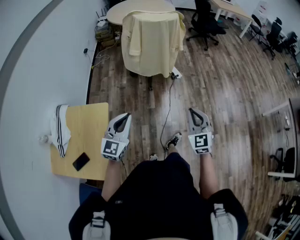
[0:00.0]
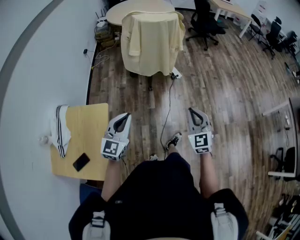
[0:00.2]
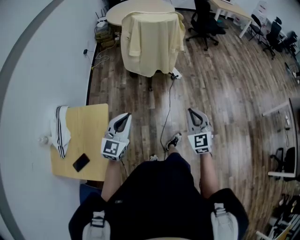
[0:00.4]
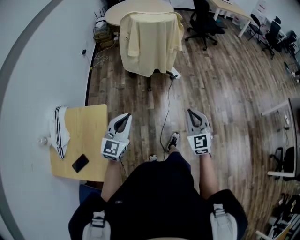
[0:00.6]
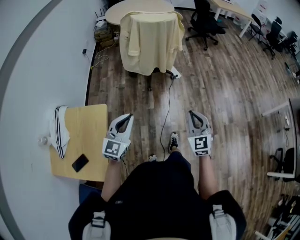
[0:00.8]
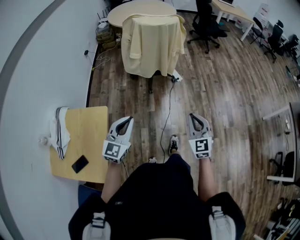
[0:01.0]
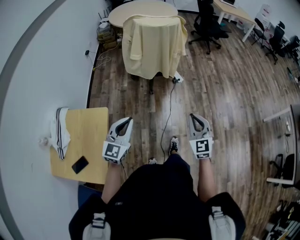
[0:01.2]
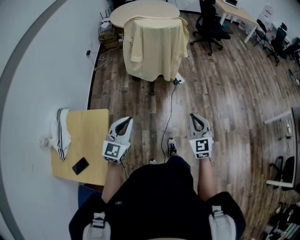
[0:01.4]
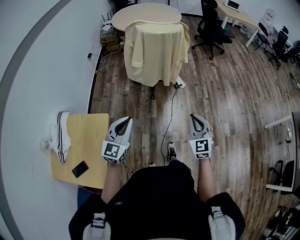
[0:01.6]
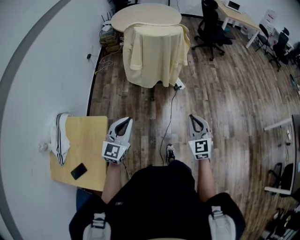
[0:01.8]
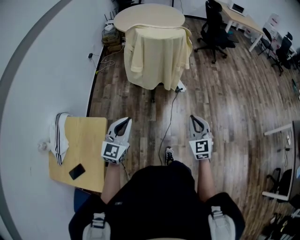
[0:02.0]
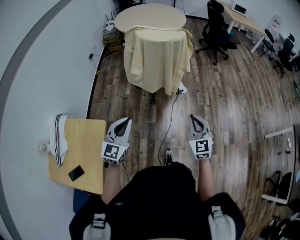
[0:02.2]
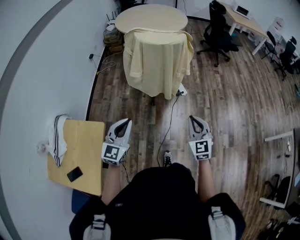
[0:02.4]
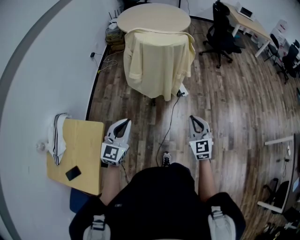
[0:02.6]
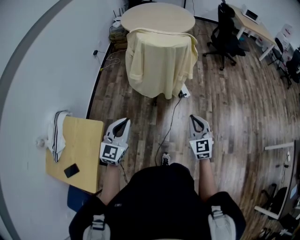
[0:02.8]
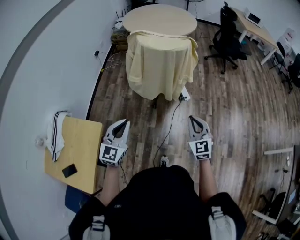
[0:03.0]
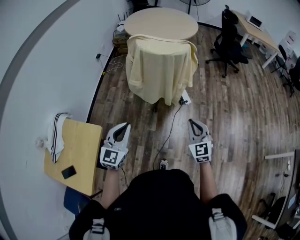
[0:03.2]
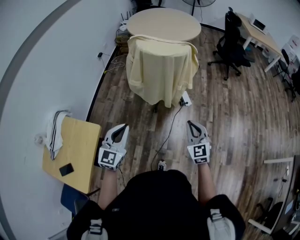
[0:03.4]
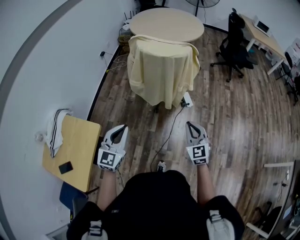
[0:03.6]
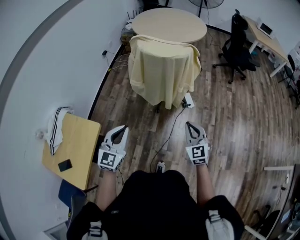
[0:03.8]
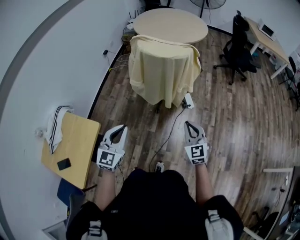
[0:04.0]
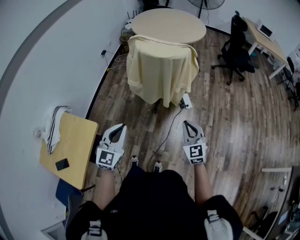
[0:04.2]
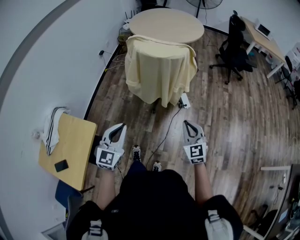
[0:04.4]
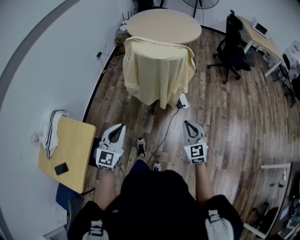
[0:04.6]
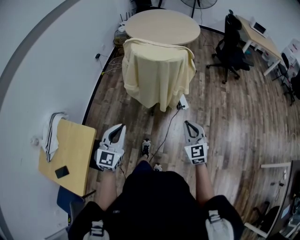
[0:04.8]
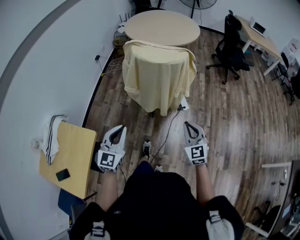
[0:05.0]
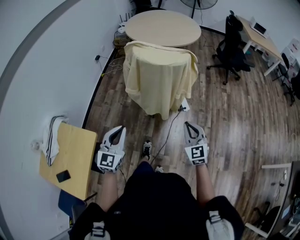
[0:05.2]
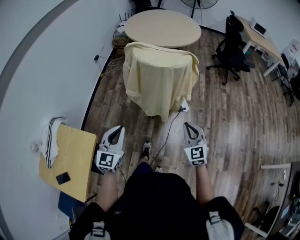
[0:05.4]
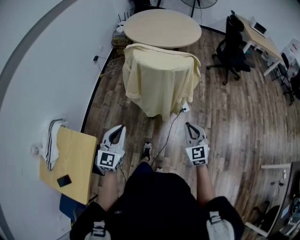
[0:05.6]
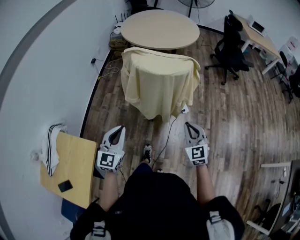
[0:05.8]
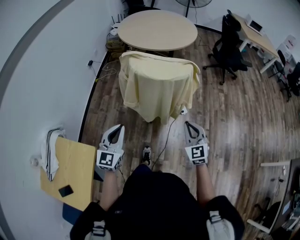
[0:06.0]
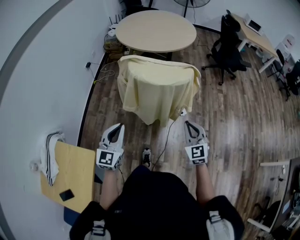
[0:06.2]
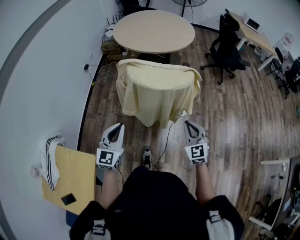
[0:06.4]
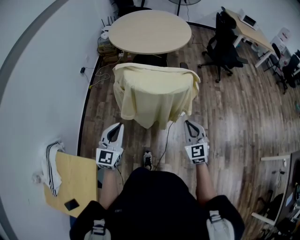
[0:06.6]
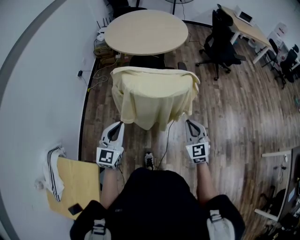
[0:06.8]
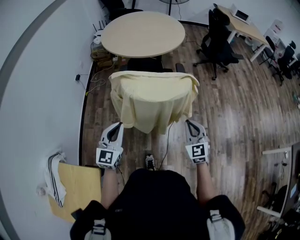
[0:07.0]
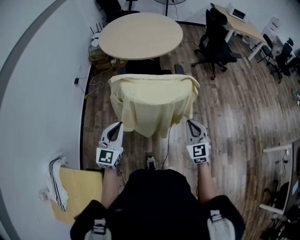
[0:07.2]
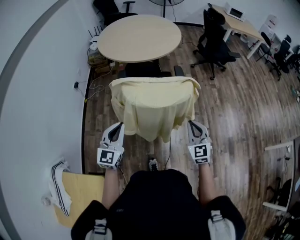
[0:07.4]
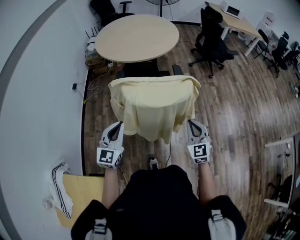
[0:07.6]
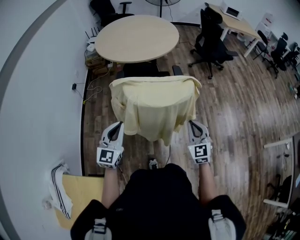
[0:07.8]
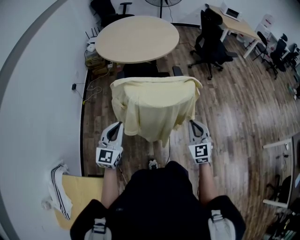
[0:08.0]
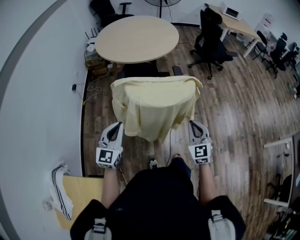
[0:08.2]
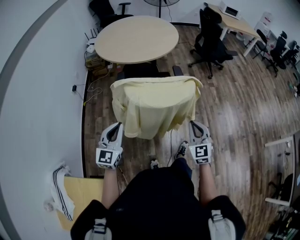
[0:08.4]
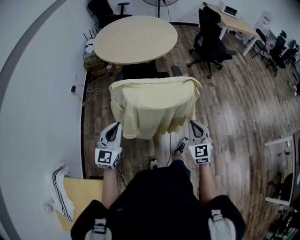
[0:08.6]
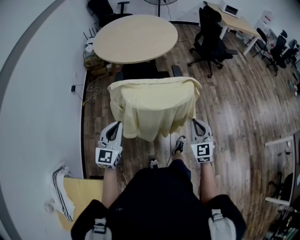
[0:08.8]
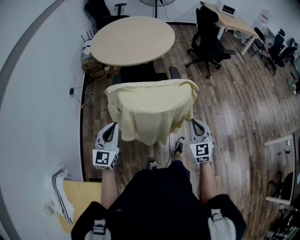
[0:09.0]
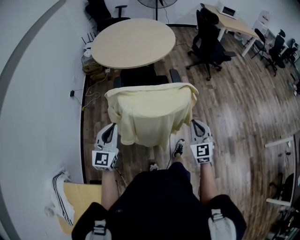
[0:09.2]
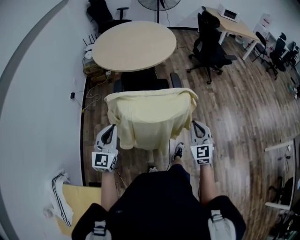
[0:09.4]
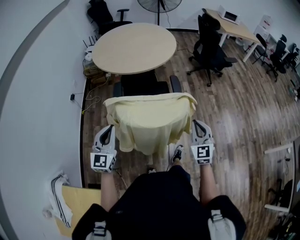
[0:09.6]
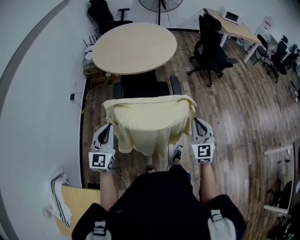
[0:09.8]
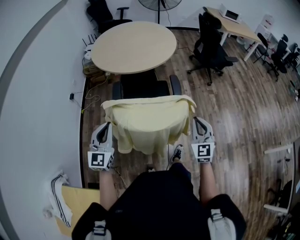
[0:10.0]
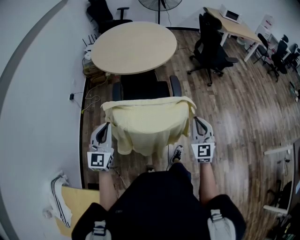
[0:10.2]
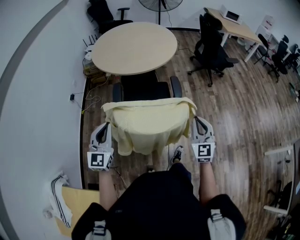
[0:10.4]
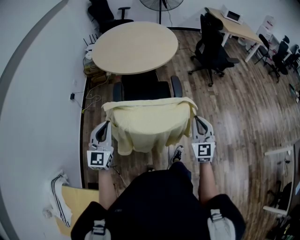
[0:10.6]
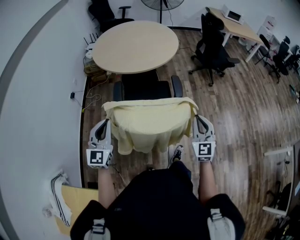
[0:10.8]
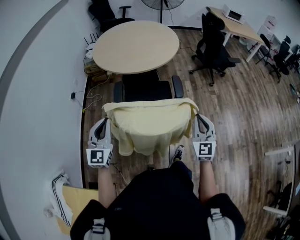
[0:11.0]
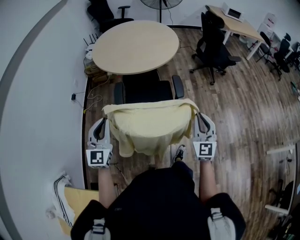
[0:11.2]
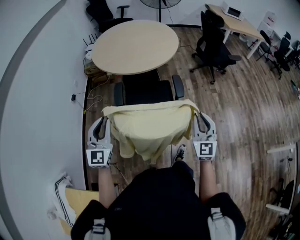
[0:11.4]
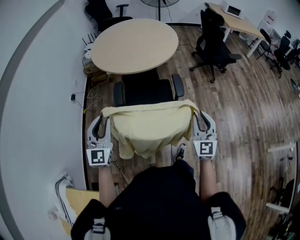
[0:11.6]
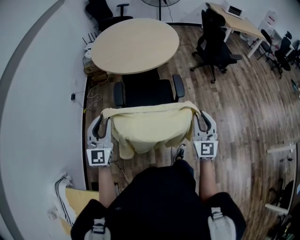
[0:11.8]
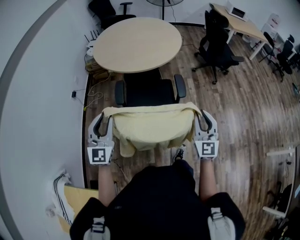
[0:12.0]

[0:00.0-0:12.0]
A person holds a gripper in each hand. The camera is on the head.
0:00.0 to 0:01.6: The grippers both shift forward by some 10 cm.
0:01.6 to 0:03.0: Both grippers travel together forward, approximately 15 cm.
0:03.0 to 0:04.4: The right gripper changes place by some 5 cm; the left gripper goes some 5 cm to the right.
0:04.4 to 0:06.0: Both grippers move forward, approximately 15 cm.
0:06.0 to 0:07.6: The left gripper is displaced forward by about 20 cm. The right gripper goes roughly 10 cm forward.
0:07.6 to 0:09.0: There are only small adjustments of the grippers.
0:09.0 to 0:10.4: Both grippers move forward, some 10 cm.
0:10.4 to 0:12.0: The left gripper moves forward, some 5 cm, and opens. Meanwhile the right gripper ends up roughly 5 cm from where it was.

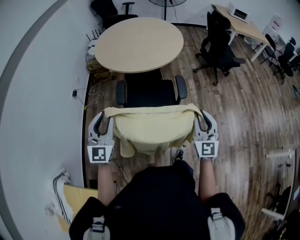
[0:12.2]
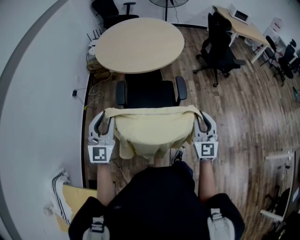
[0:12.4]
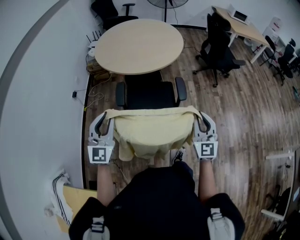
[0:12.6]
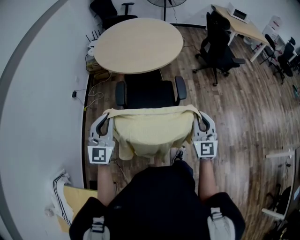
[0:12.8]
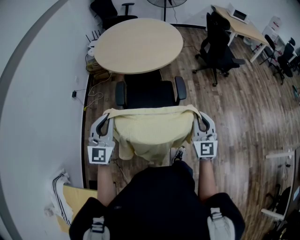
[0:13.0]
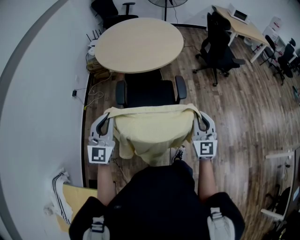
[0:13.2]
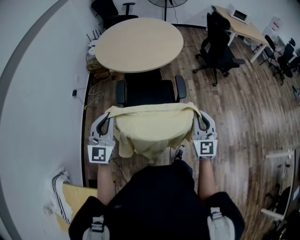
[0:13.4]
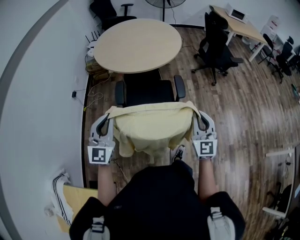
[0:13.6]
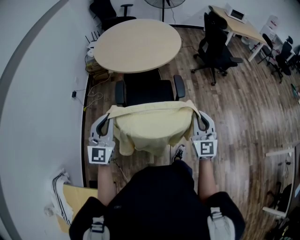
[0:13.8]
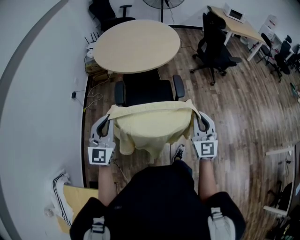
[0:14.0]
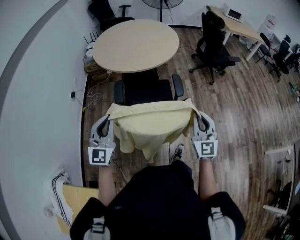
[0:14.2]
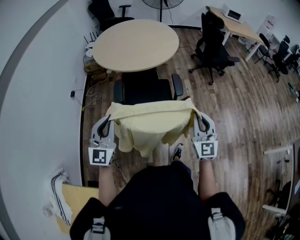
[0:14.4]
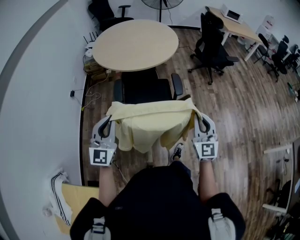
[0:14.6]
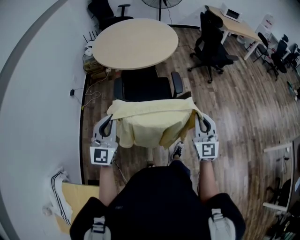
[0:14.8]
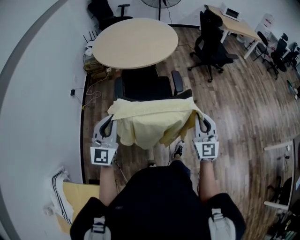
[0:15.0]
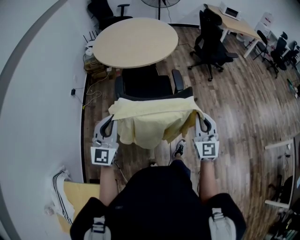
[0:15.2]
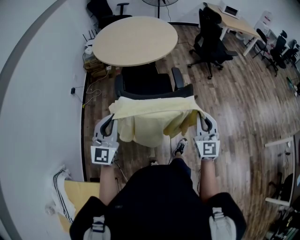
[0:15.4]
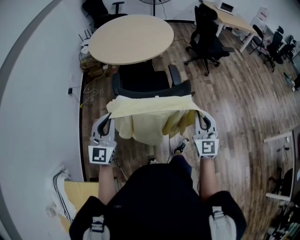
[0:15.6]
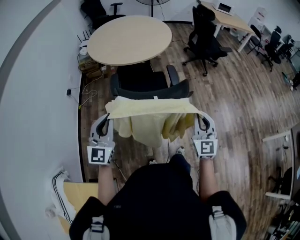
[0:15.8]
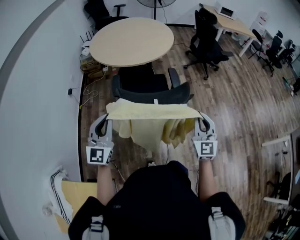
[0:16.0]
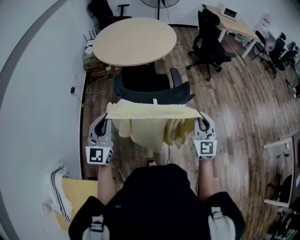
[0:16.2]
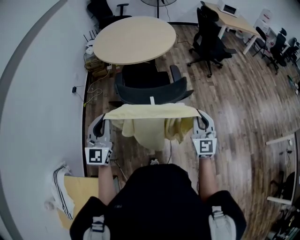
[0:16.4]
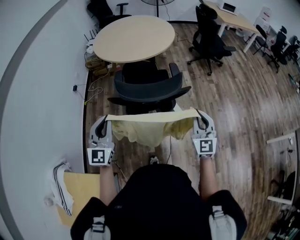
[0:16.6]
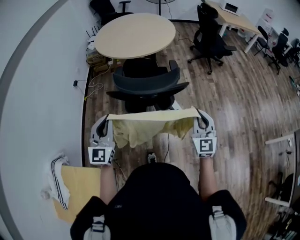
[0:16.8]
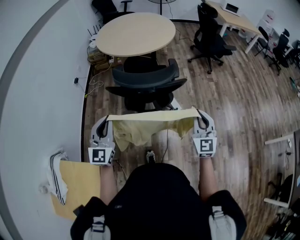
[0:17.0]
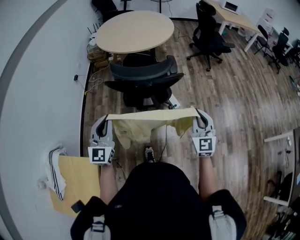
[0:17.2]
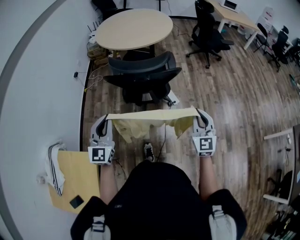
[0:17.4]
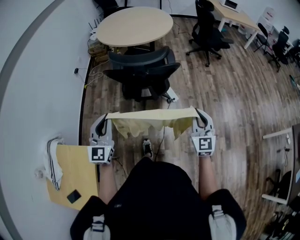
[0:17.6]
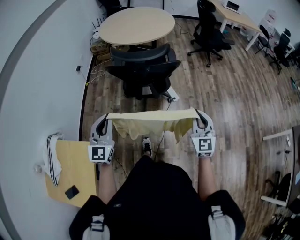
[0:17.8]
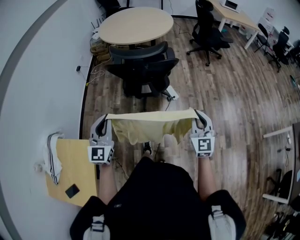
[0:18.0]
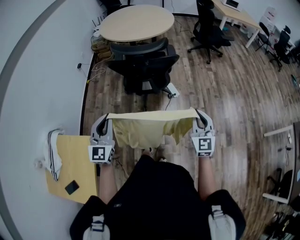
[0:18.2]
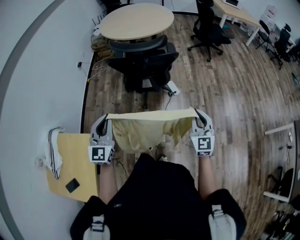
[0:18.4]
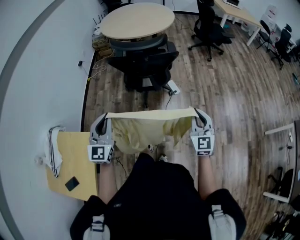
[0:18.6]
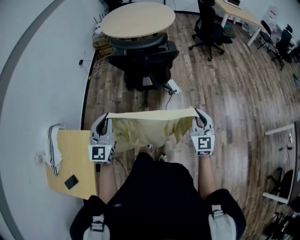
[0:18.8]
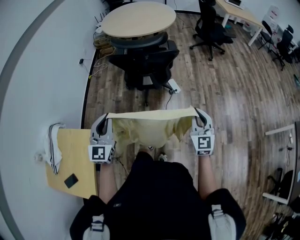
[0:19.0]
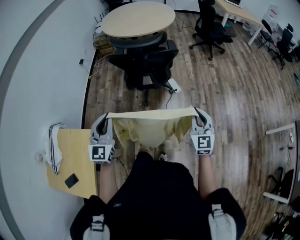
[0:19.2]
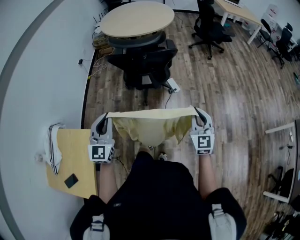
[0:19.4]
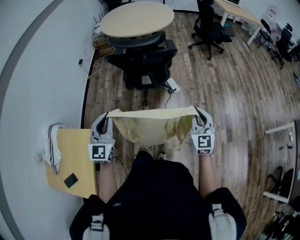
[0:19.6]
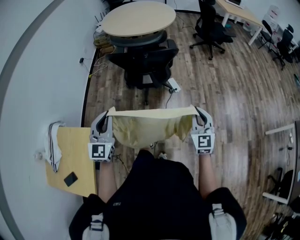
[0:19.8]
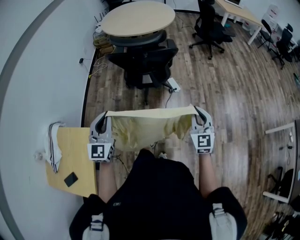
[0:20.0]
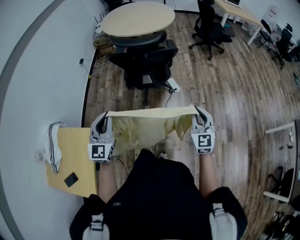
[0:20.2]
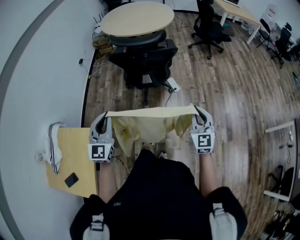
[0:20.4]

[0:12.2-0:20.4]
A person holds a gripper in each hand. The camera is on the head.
0:12.2 to 0:13.8: The left gripper closes its fingers.
0:13.8 to 0:15.4: Both grippers move backward, about 10 cm.
0:15.4 to 0:17.2: The grippers both shift backward and to the right by roughly 20 cm.
0:17.2 to 0:18.8: The grippers both shift backward by some 15 cm.
0:18.8 to 0:20.4: The grippers make only small movements.

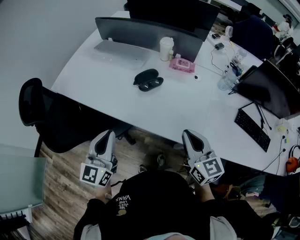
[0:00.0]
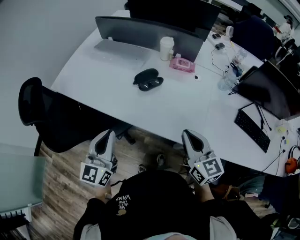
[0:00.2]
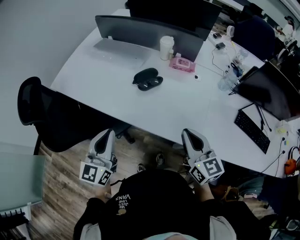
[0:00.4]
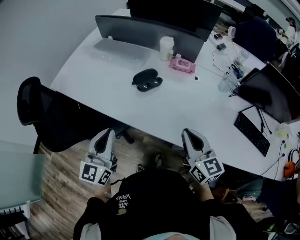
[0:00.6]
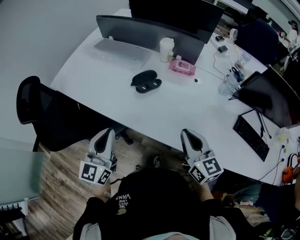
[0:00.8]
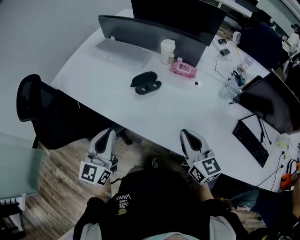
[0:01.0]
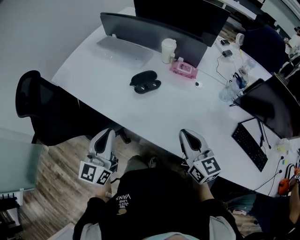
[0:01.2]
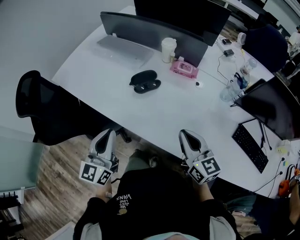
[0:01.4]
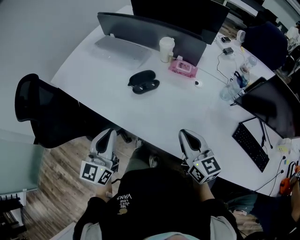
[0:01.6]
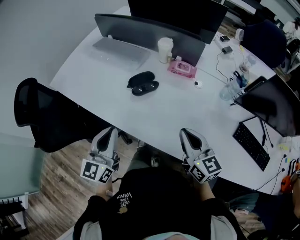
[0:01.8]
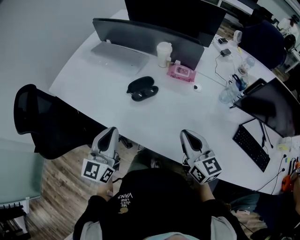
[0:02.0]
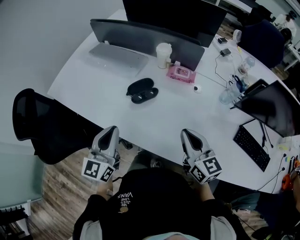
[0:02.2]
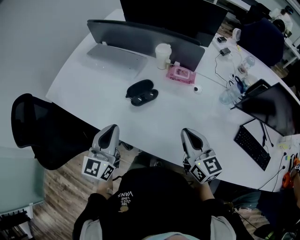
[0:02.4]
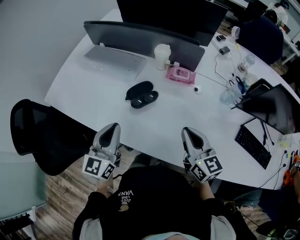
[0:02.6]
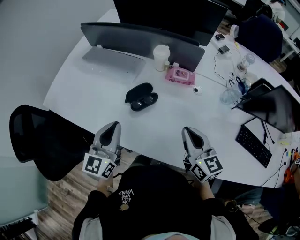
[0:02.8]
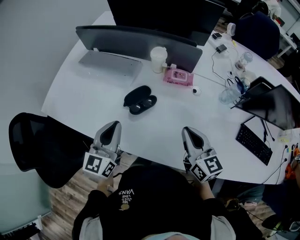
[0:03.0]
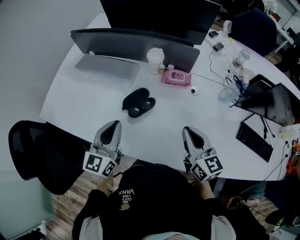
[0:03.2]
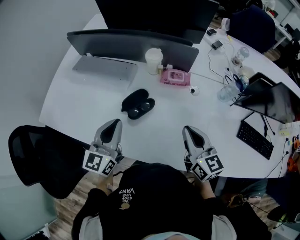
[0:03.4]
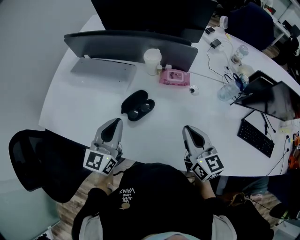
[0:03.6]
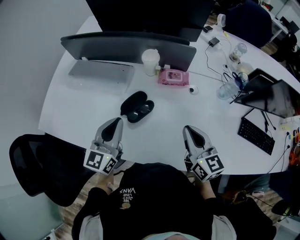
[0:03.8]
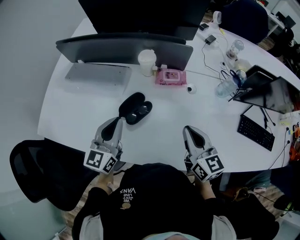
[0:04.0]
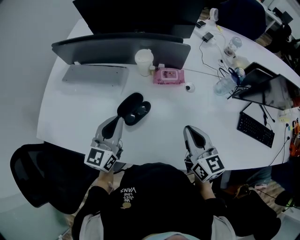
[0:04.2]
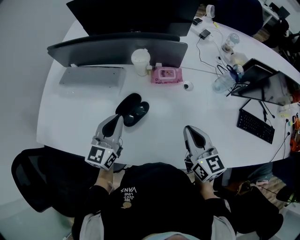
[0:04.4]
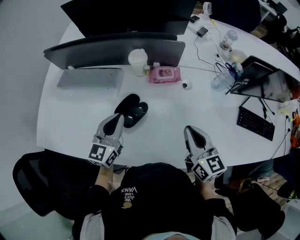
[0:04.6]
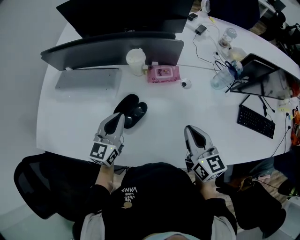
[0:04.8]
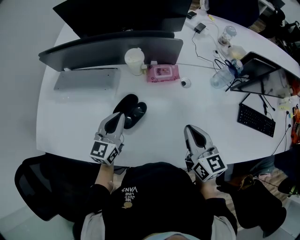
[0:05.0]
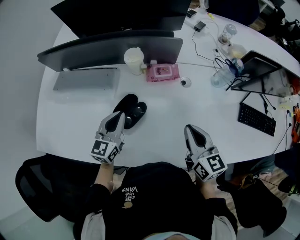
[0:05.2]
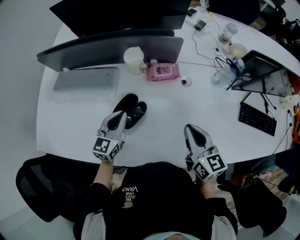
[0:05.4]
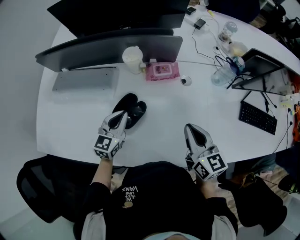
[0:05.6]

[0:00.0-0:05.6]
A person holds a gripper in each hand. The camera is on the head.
0:00.0 to 0:01.4: The left gripper goes roughly 5 cm to the right; the right gripper goes about 10 cm to the right and forward.
0:01.4 to 0:02.8: The right gripper goes approximately 10 cm forward, while the left gripper heads forward, covering about 15 cm.
0:02.8 to 0:04.2: The left gripper moves forward, approximately 10 cm.
0:04.2 to 0:05.6: The left gripper moves downward and forward, some 10 cm.
